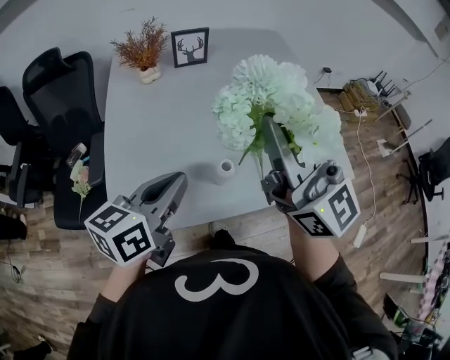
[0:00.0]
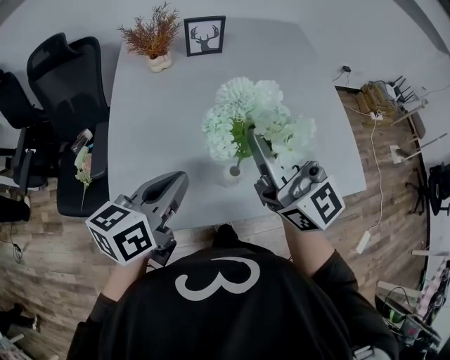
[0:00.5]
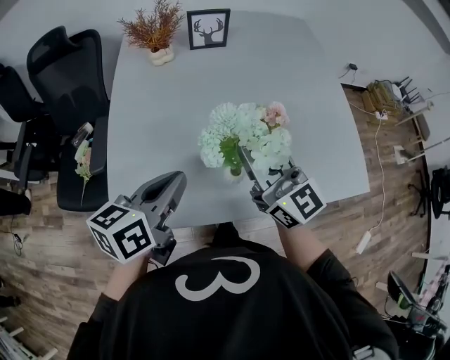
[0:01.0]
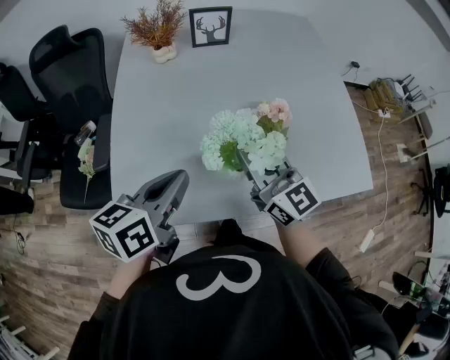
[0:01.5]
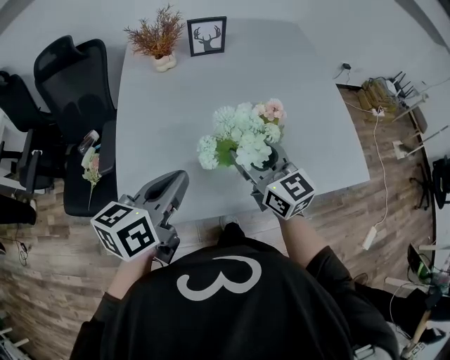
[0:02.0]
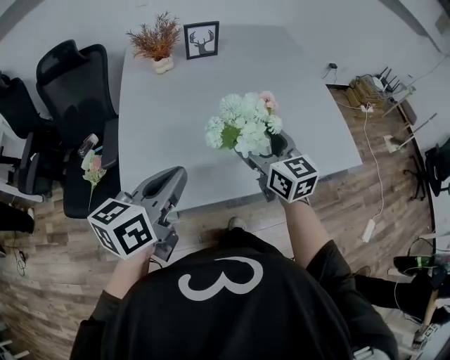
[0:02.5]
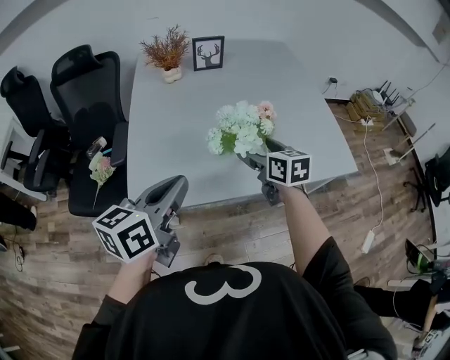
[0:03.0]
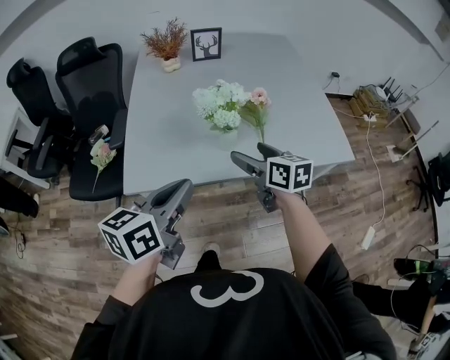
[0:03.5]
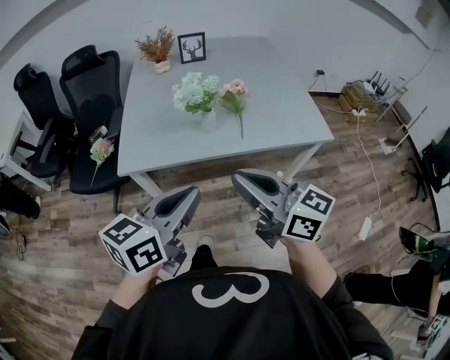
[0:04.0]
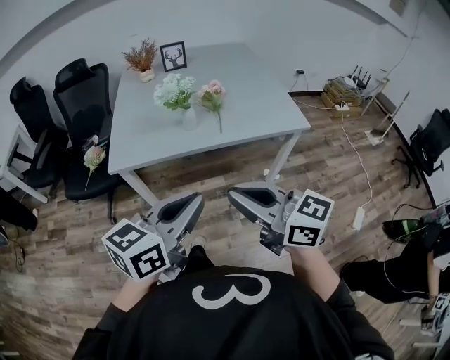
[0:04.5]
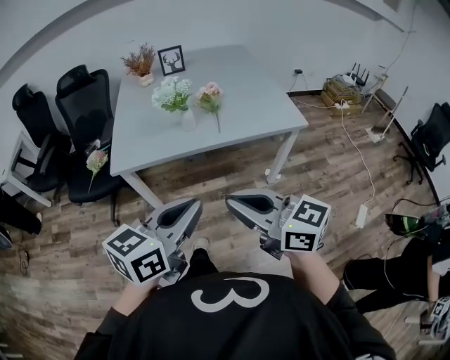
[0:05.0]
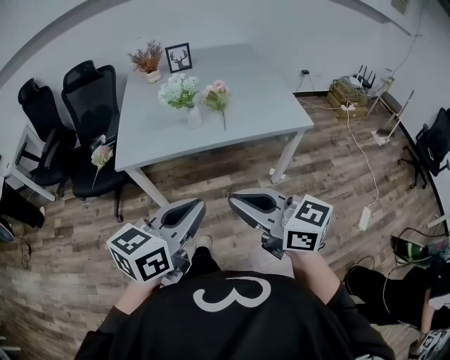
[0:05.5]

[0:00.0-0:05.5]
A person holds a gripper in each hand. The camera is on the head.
0:00.0 to 0:02.0: The right gripper shifts roughly 20 cm downward, turns by some 30 degrees, and opens.
0:02.0 to 0:03.5: The left gripper shifts about 15 cm backward. Meanwhile the right gripper is displaced backward and to the right by about 10 cm, turns by approximately 30 degrees, and opens.
0:03.5 to 0:05.5: The left gripper travels backward and to the right by some 30 cm, while the right gripper shifts approximately 40 cm backward, swivels approximately 30 degrees, and closes.

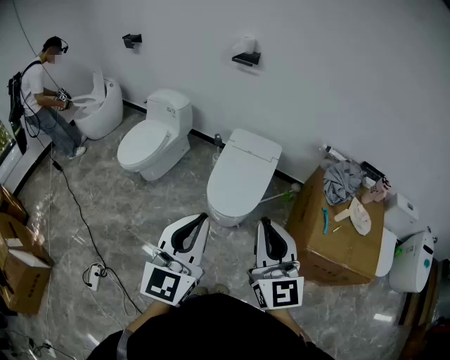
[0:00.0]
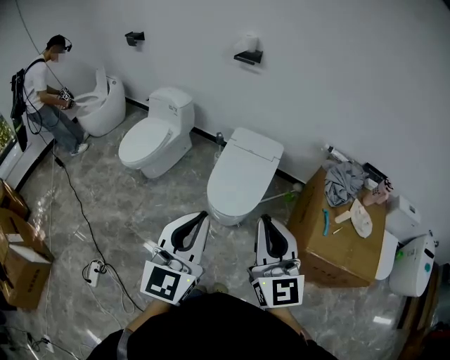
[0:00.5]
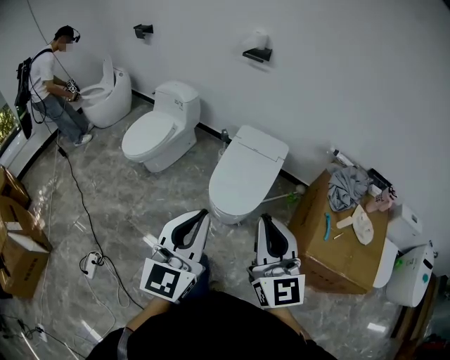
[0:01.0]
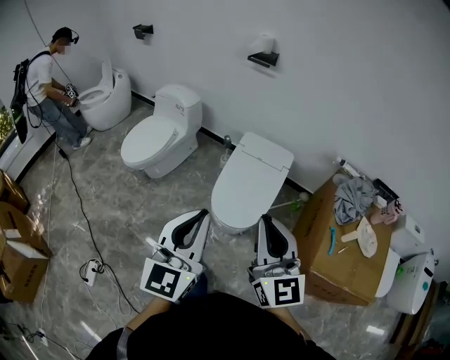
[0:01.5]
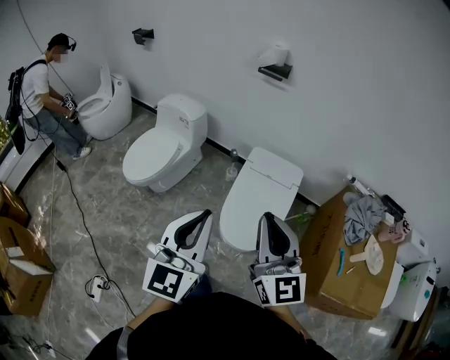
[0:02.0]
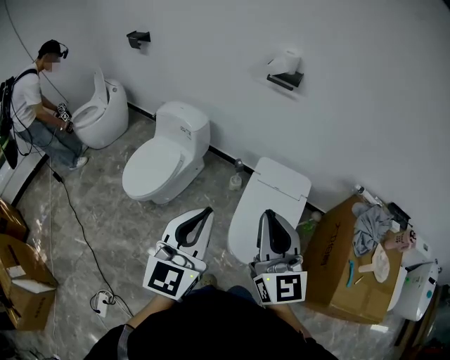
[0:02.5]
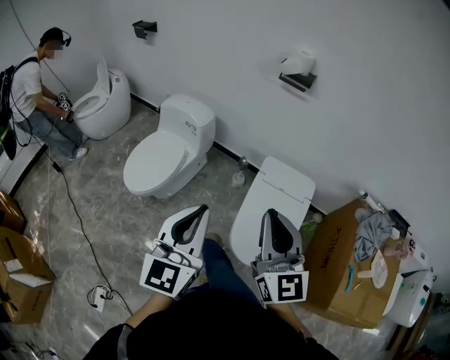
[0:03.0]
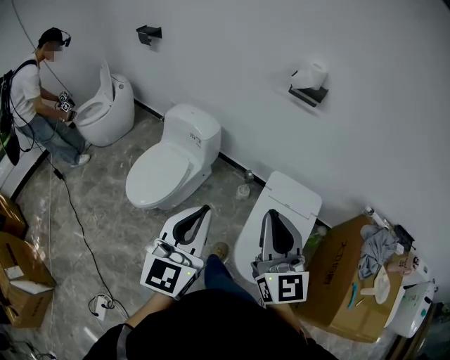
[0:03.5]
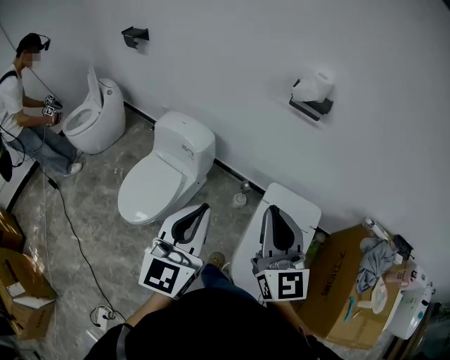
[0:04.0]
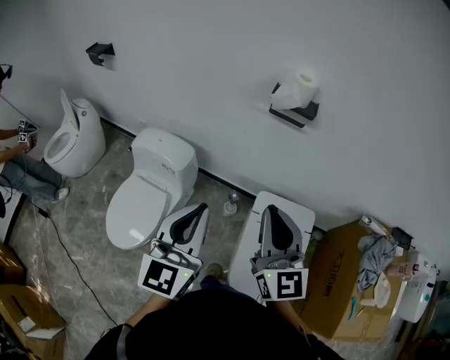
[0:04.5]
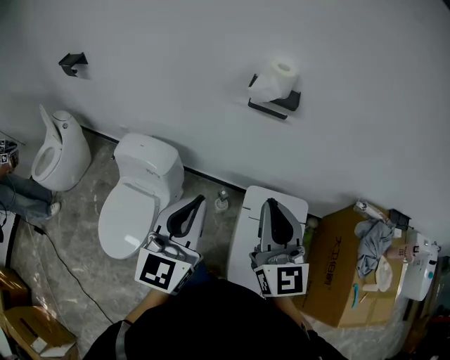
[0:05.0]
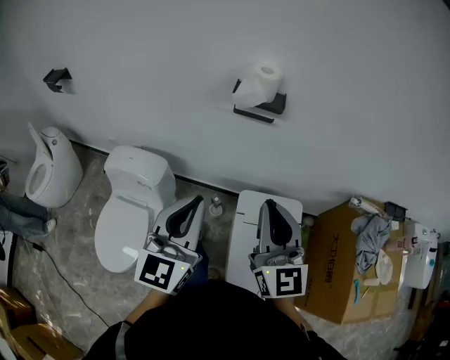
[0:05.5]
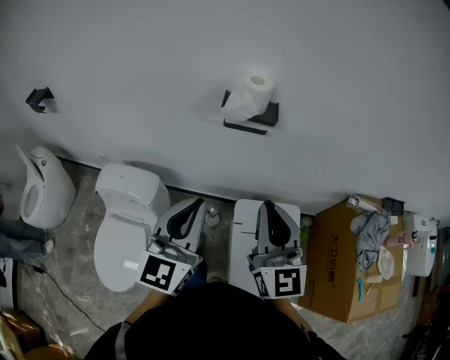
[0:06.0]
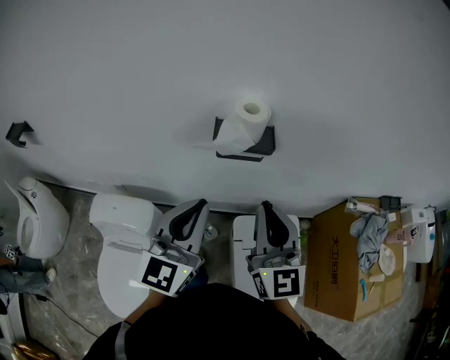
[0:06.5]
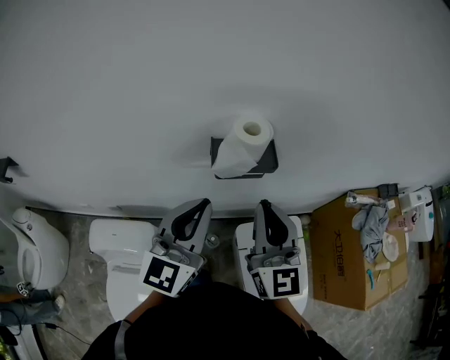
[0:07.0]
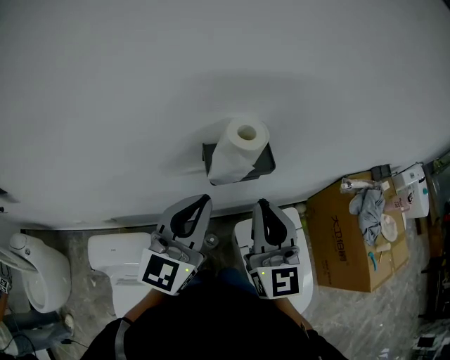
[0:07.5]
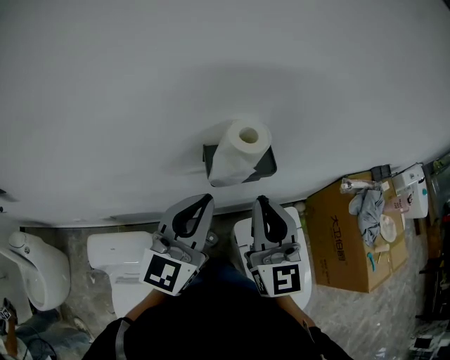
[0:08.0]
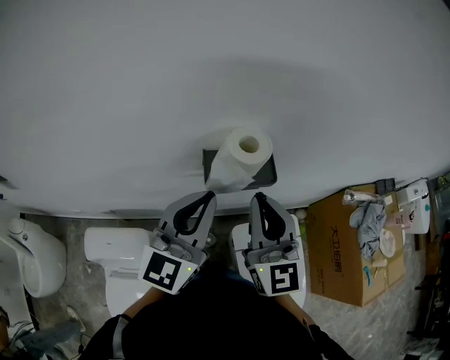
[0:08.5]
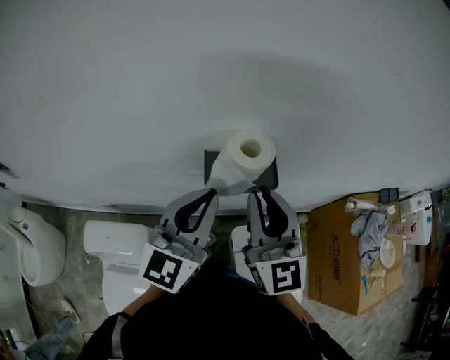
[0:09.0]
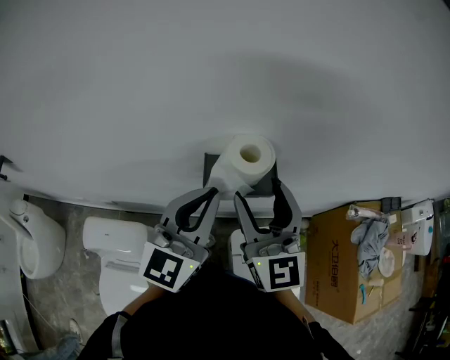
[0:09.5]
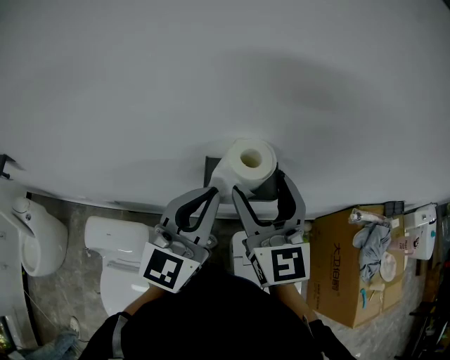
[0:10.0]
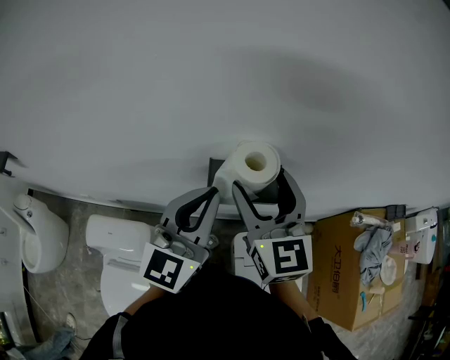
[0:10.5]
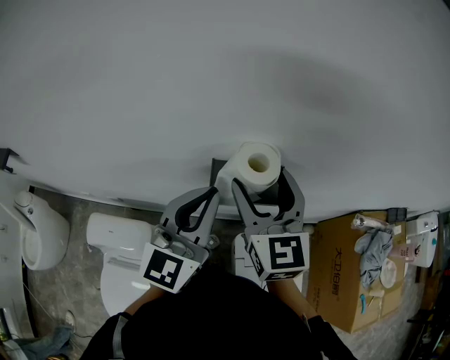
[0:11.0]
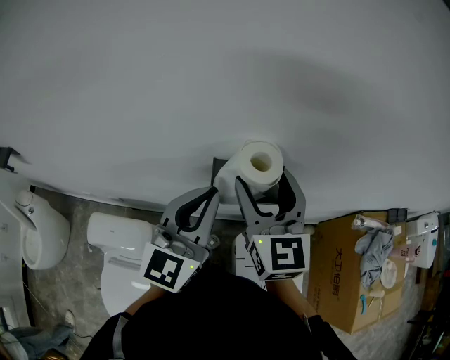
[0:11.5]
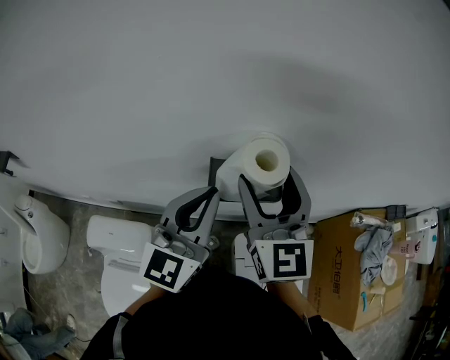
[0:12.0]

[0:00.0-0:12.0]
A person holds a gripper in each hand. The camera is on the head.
0:00.0 to 0:02.0: The grippers both shift forward by roughly 20 cm.
0:02.0 to 0:04.0: The right gripper travels forward by about 35 cm, while the left gripper shifts about 35 cm forward and to the left.
0:04.0 to 0:06.0: The two grippers go roughly 25 cm forward. The left gripper rotates some 20 degrees. Meanwhile the right gripper rotates roughly 20 degrees.
0:06.0 to 0:08.0: The right gripper is displaced forward and to the left by about 20 cm. Meanwhile the left gripper heads forward, covering roughly 20 cm, and rotates some 20 degrees.
0:08.0 to 0:10.0: The left gripper goes some 5 cm forward. The right gripper is displaced forward by about 10 cm, and opens up.
0:10.0 to 0:12.0: The grippers stay close to where they were, moving slightly.

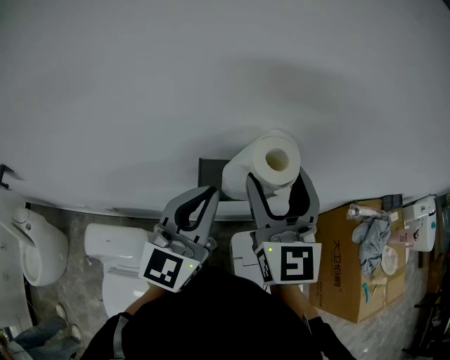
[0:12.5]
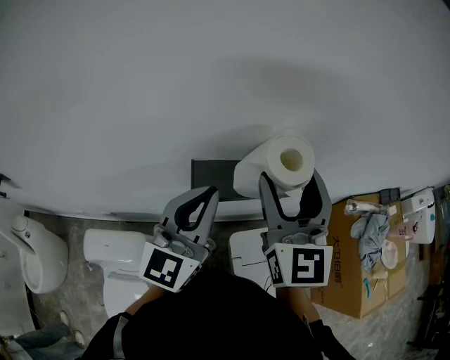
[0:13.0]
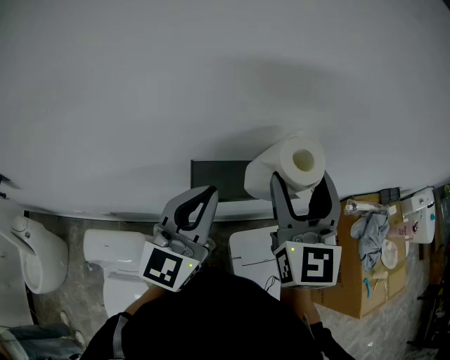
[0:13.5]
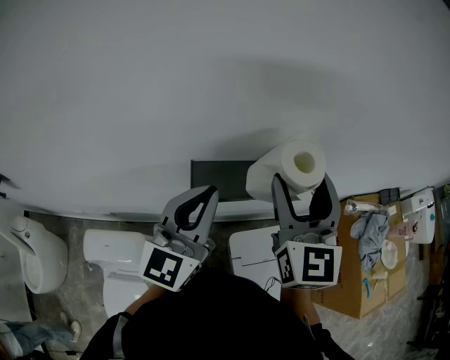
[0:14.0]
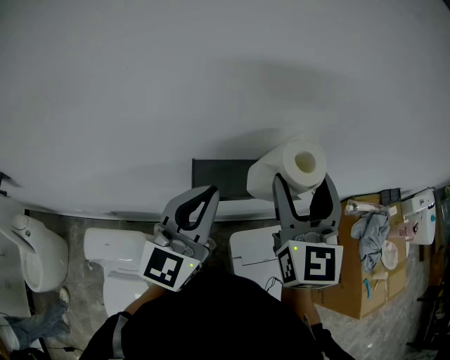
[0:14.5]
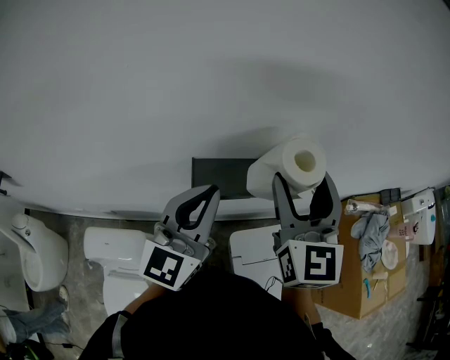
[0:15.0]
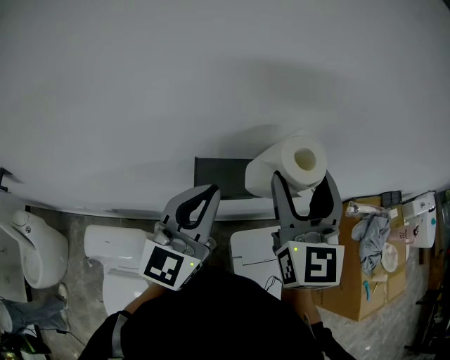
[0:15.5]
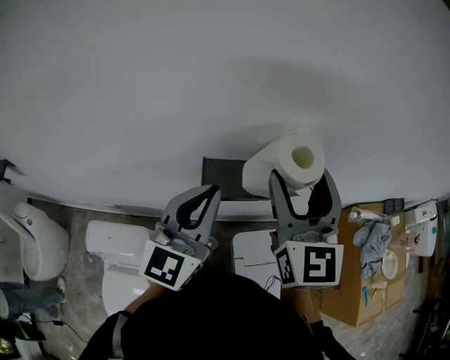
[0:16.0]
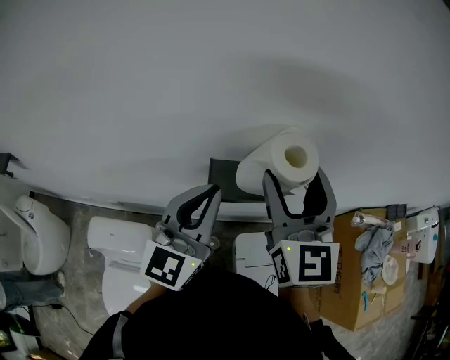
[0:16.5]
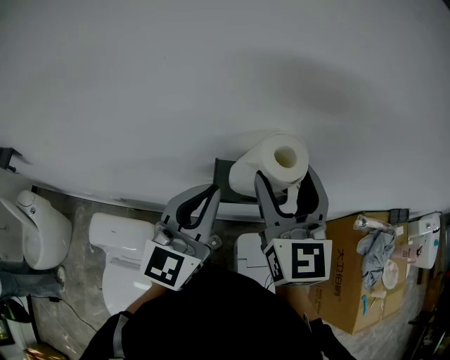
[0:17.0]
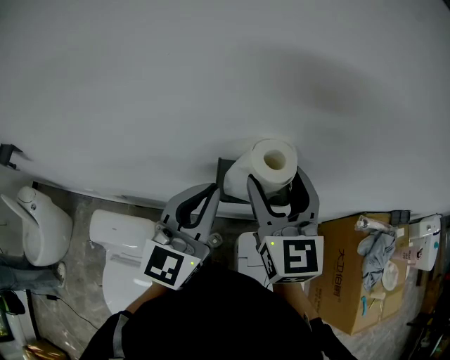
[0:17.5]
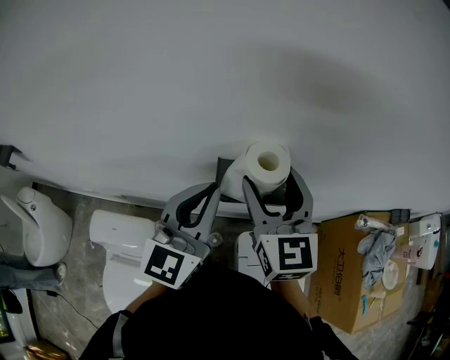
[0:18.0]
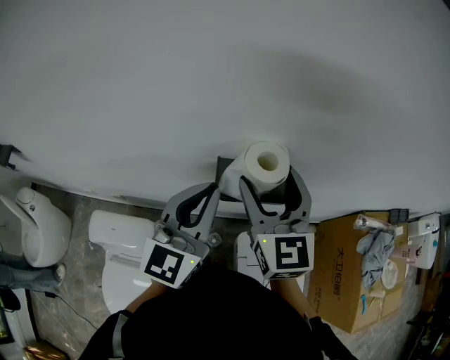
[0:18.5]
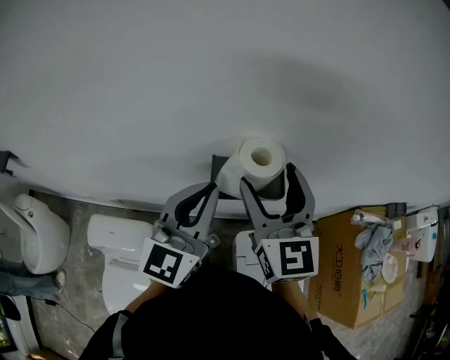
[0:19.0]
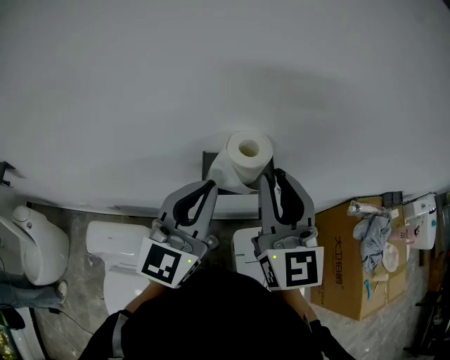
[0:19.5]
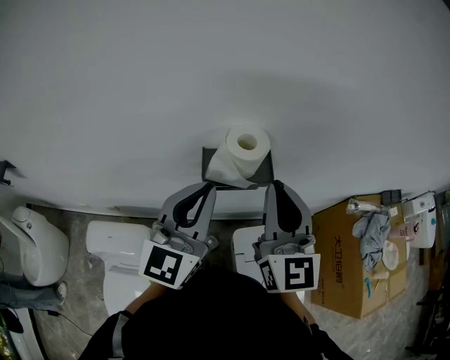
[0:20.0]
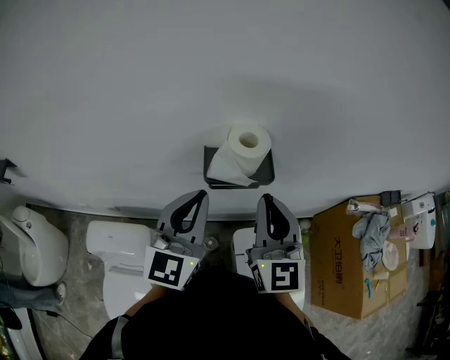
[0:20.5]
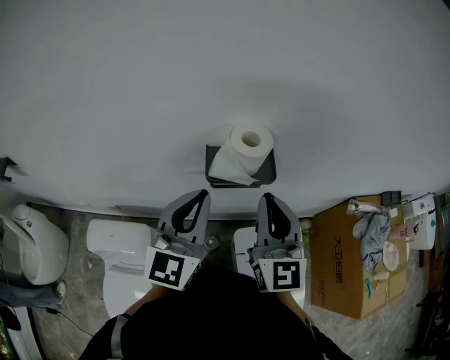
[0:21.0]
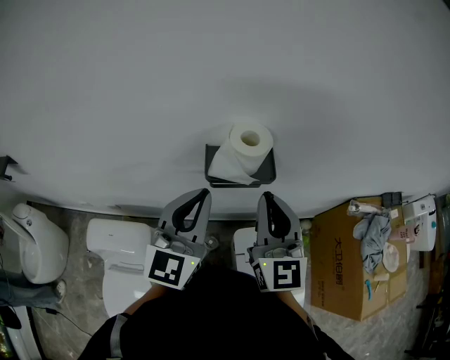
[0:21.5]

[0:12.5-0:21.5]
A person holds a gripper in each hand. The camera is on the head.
0:12.5 to 0:14.5: The right gripper moves to the right, some 5 cm.
0:14.5 to 0:17.0: The right gripper moves to the left, roughly 10 cm.
0:17.0 to 0:19.5: The right gripper closes its fingers.
0:19.5 to 0:21.5: The right gripper heads downward, covering roughly 5 cm.
